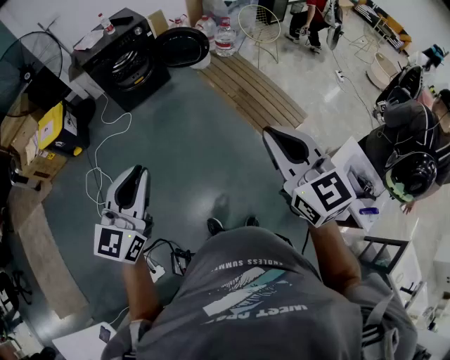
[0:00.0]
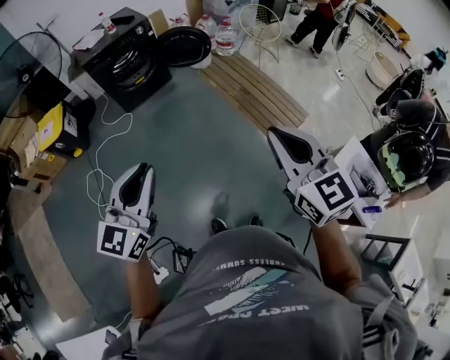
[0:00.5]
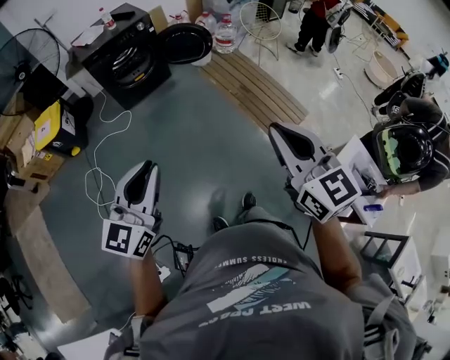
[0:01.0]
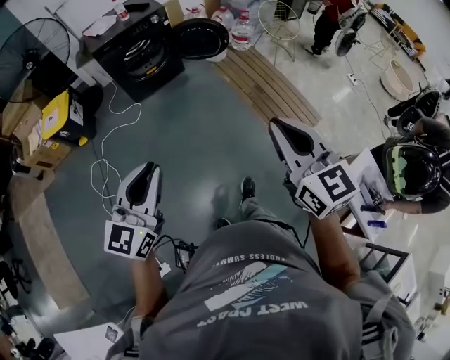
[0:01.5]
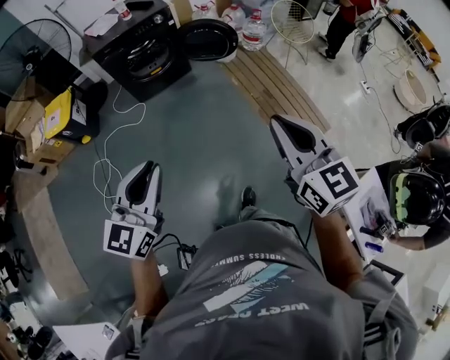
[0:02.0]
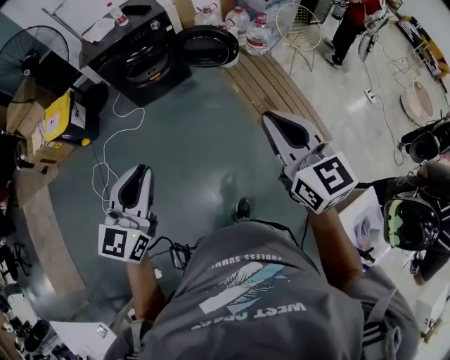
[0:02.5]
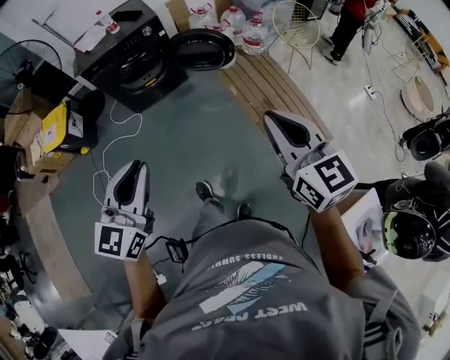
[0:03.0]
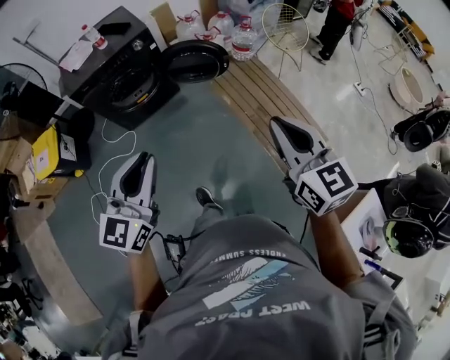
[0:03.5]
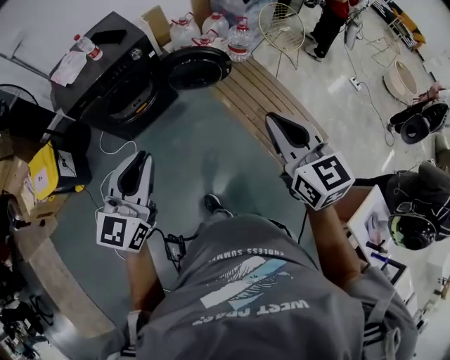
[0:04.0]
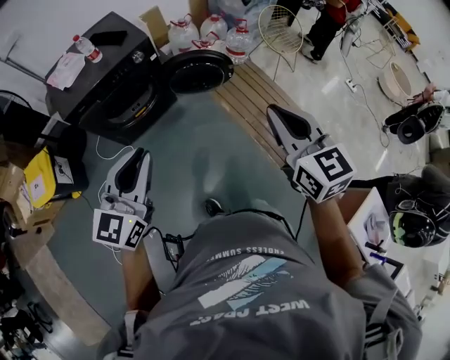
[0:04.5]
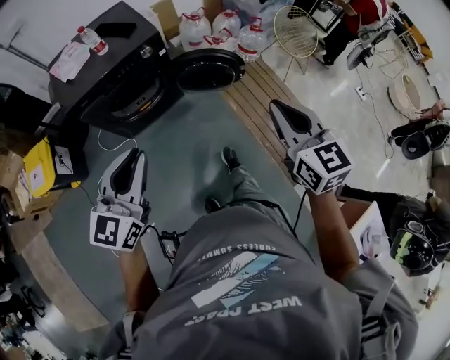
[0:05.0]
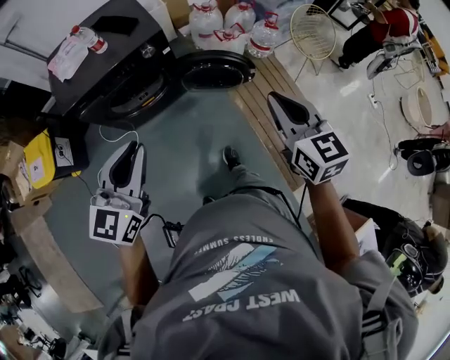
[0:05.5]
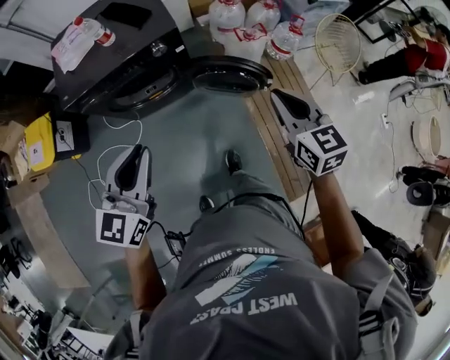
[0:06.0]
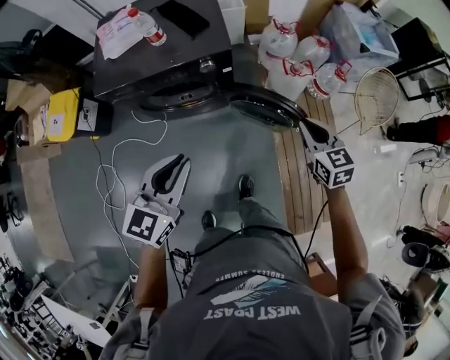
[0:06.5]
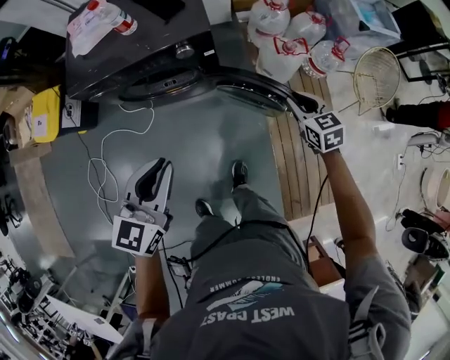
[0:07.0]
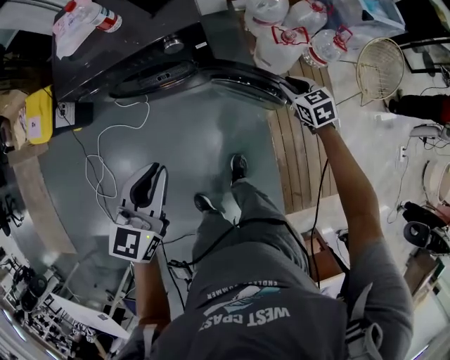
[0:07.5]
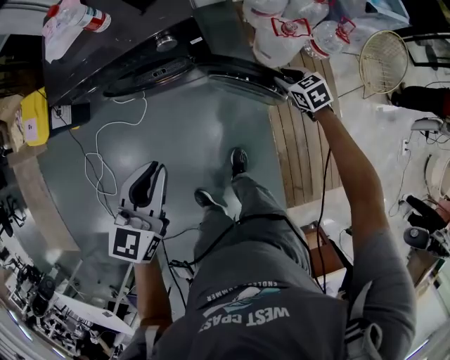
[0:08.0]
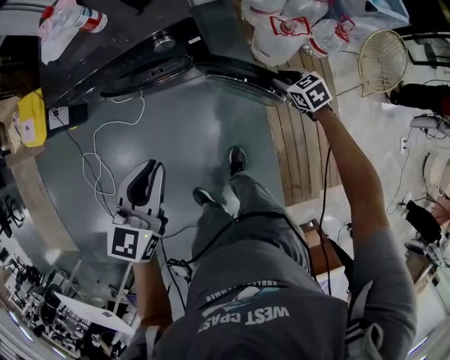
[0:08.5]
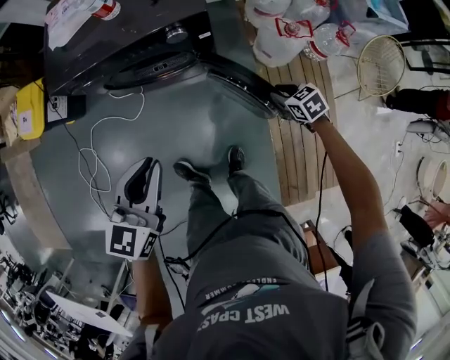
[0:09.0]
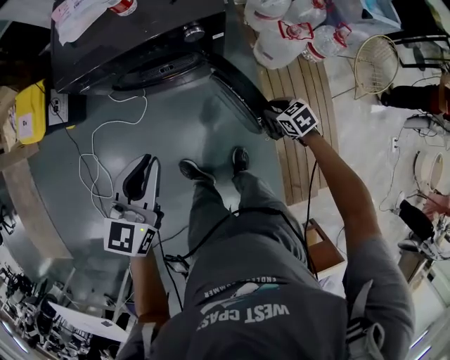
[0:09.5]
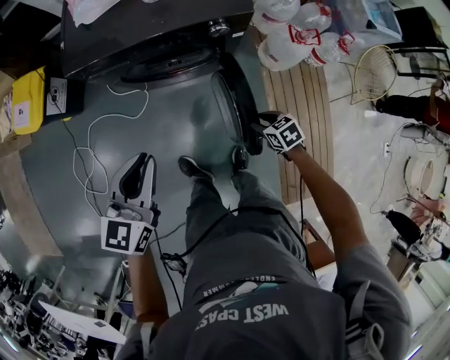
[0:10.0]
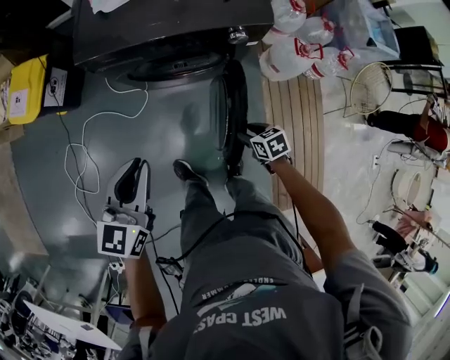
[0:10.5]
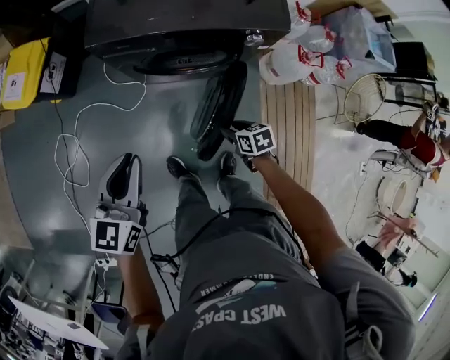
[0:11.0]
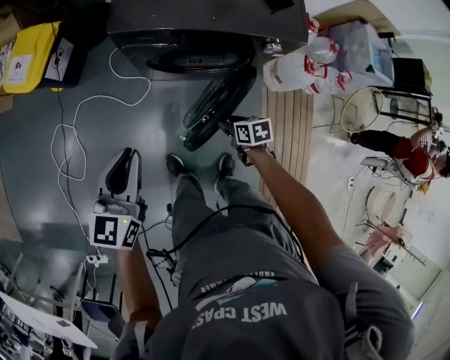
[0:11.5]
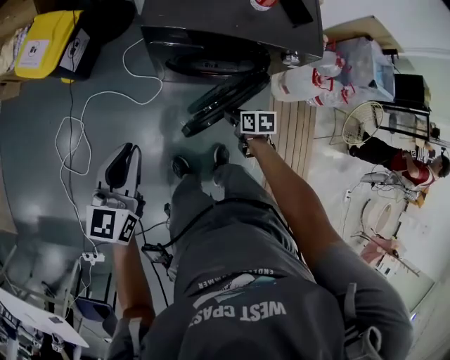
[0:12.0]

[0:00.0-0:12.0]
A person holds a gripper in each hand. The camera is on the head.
0:00.0 to 0:02.0: The two grippers go about 20 cm forward.
0:02.0 to 0:04.0: Both grippers travel together forward, about 35 cm.
0:04.0 to 0:06.0: Both grippers move forward, some 35 cm.
0:06.0 to 0:08.0: The right gripper is displaced downward and forward by about 40 cm, changes its angle by approximately 40 degrees, and opens up, while the left gripper goes roughly 15 cm downward and forward.
0:08.0 to 0:10.0: The right gripper goes roughly 25 cm to the left and backward. The left gripper shifts about 20 cm to the left.
0:10.0 to 0:12.0: The right gripper shifts approximately 25 cm to the left and forward, and swivels approximately 20 degrees. The left gripper shifts some 25 cm to the left.

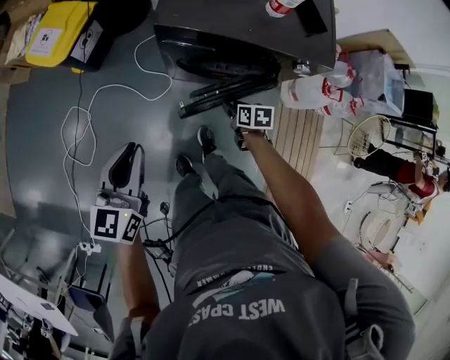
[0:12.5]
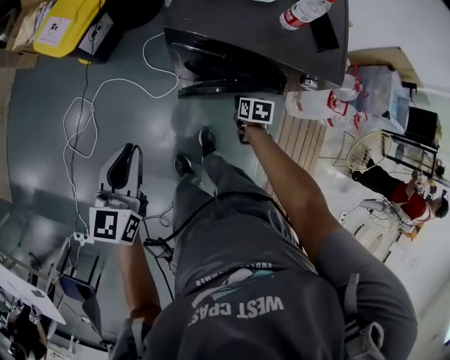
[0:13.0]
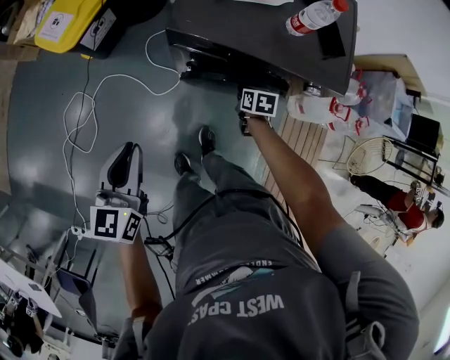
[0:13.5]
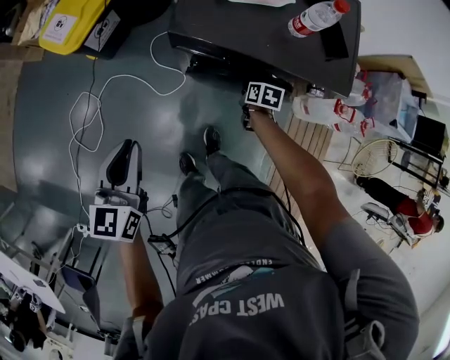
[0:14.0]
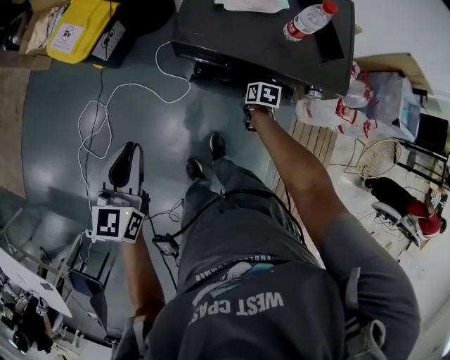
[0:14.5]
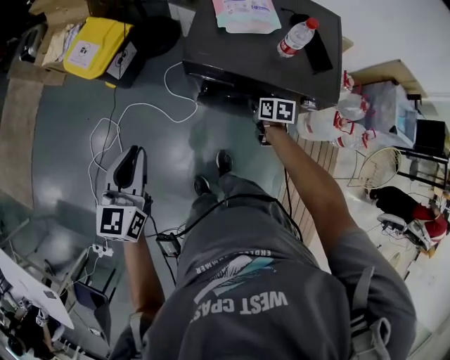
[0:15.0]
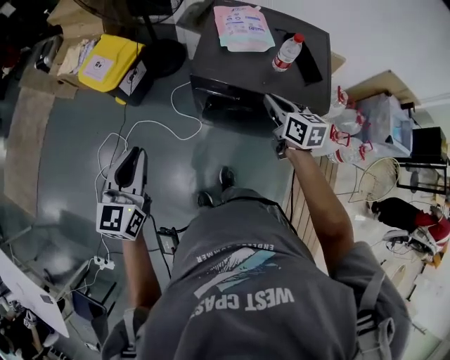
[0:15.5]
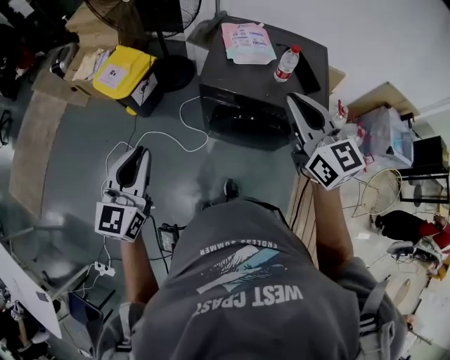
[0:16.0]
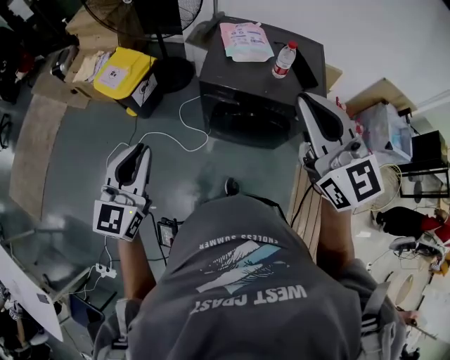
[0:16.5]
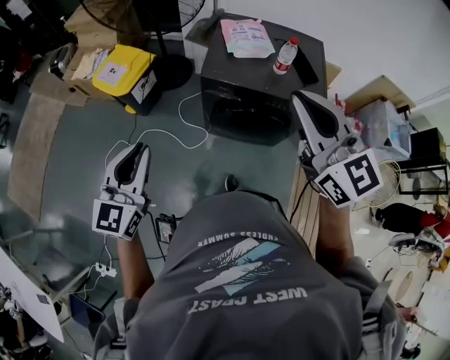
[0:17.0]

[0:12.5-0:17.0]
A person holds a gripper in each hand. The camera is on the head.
0:12.5 to 0:14.5: The left gripper travels forward by approximately 5 cm, while the right gripper moves forward, some 10 cm, and closes.
0:14.5 to 0:17.0: The right gripper moves upward, approximately 60 cm, and tips its fingers upward by about 60 degrees, while the left gripper moves upward and backward, about 20 cm, and rotates roughly 20 degrees.

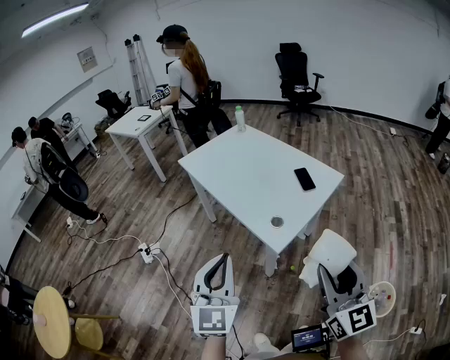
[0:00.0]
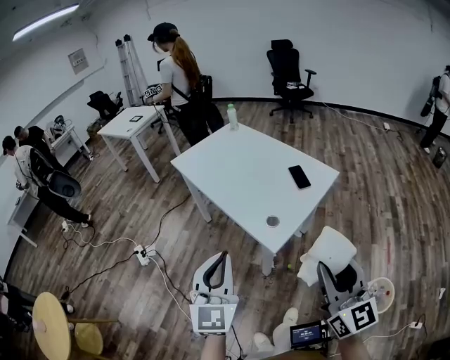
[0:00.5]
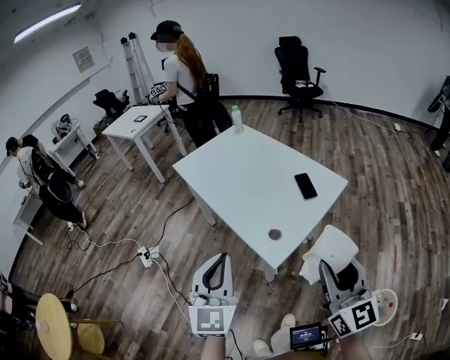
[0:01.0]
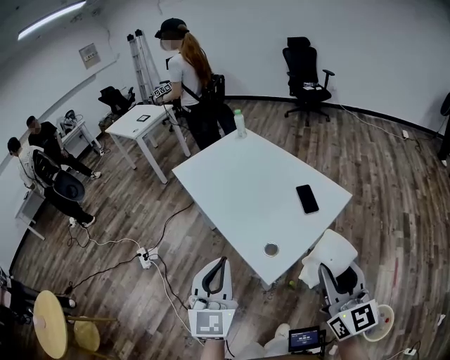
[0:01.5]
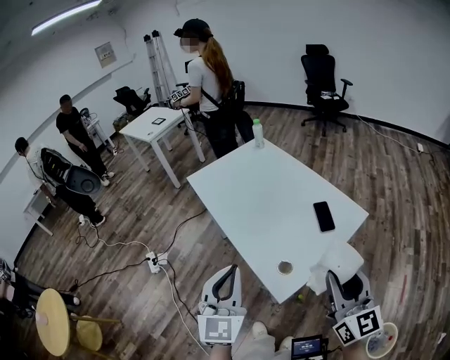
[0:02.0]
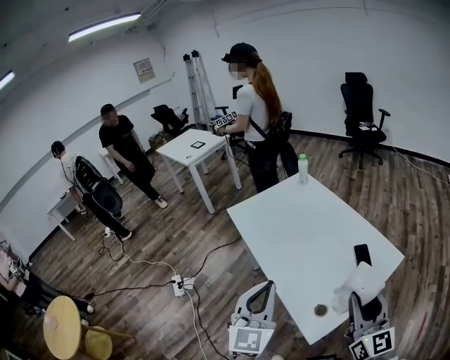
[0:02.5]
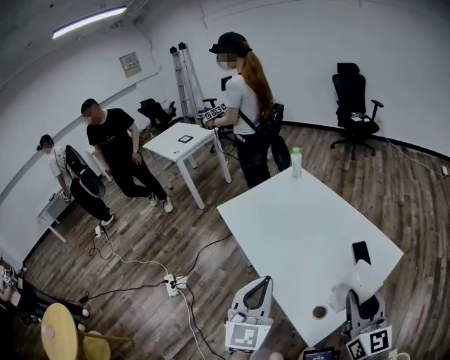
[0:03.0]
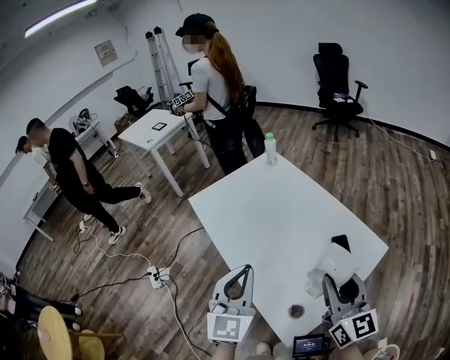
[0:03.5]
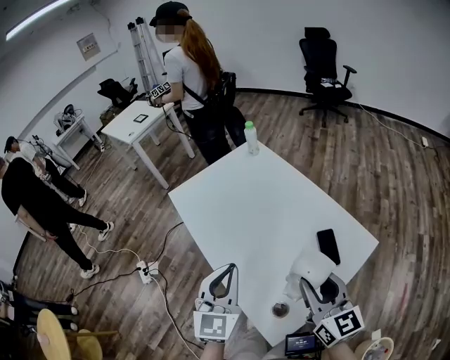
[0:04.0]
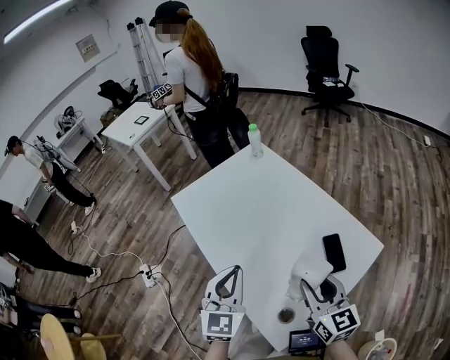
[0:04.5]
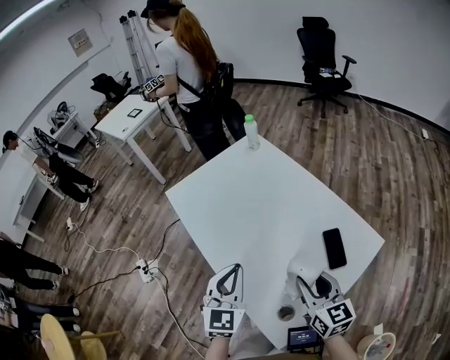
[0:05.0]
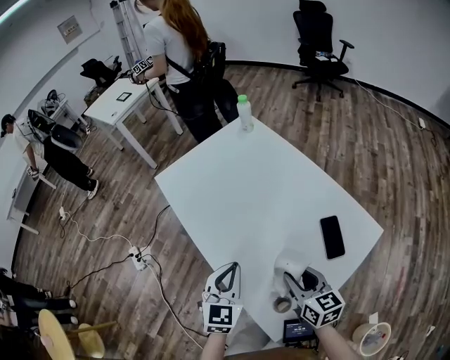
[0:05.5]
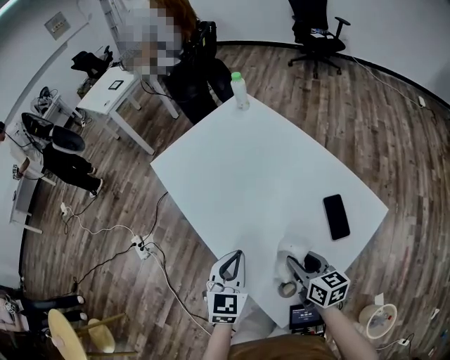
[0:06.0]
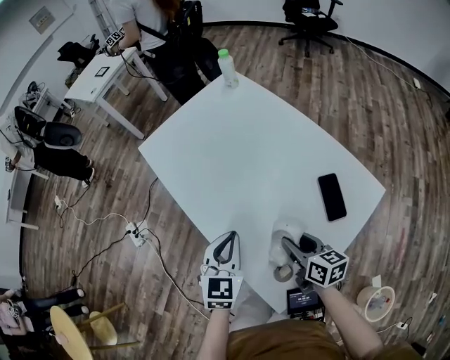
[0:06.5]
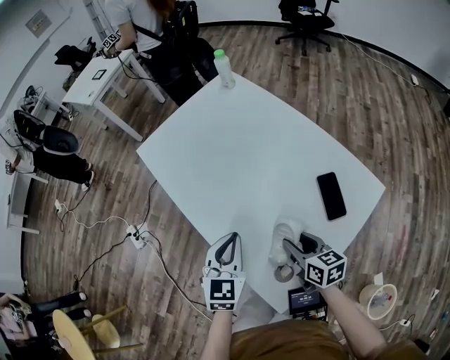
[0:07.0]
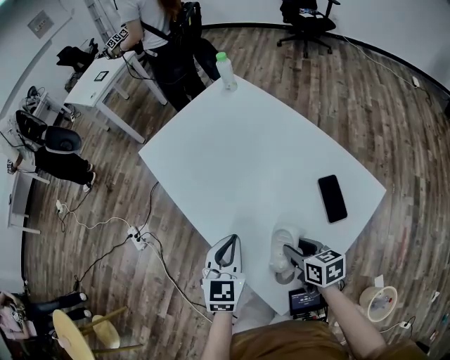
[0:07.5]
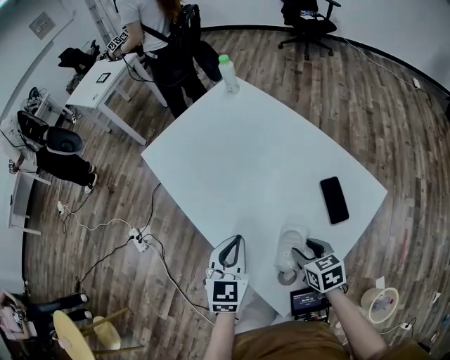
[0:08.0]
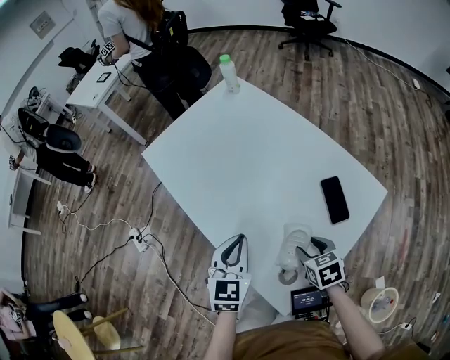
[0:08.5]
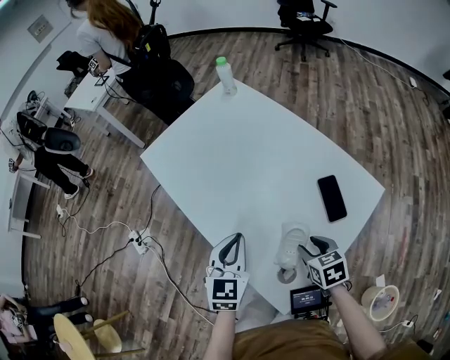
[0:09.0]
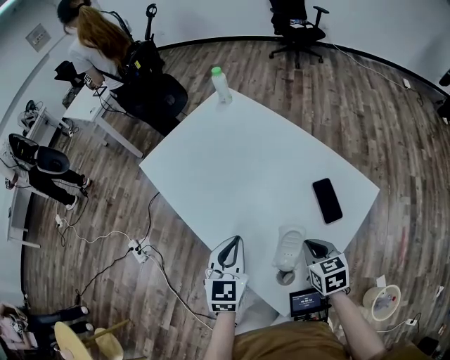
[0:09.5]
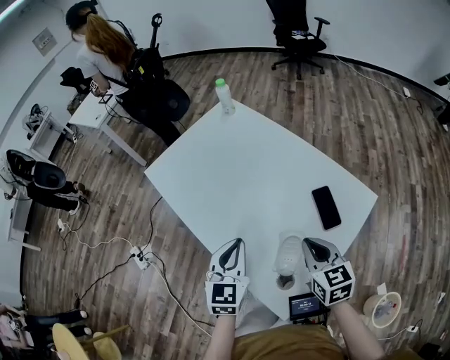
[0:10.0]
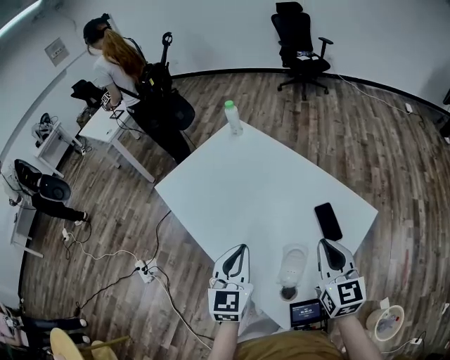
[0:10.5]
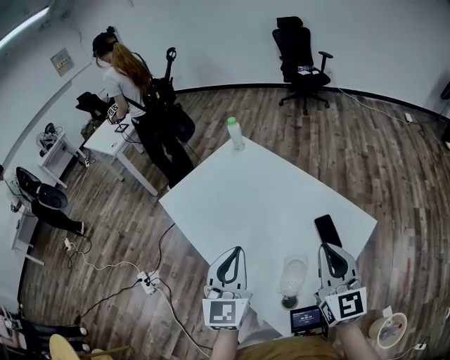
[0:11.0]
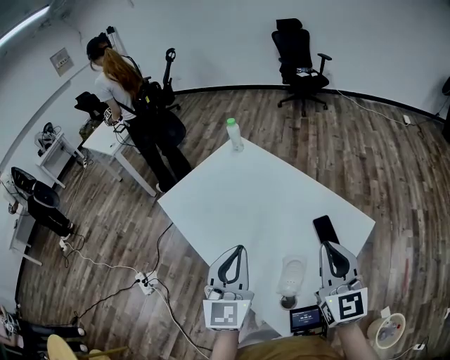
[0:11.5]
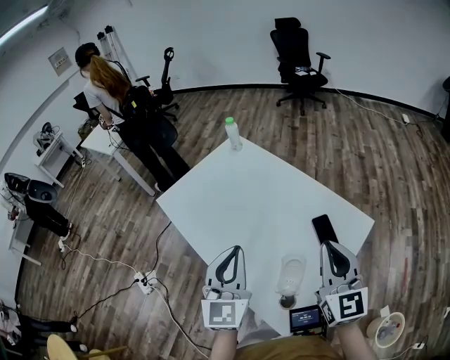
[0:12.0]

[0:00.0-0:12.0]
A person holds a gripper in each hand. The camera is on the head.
0:00.0 to 0:02.0: The two grippers go approximately 20 cm forward.
0:02.0 to 0:04.0: Both grippers move forward, some 20 cm.
0:04.0 to 0:06.0: The two grippers go about 20 cm downward. The right gripper rotates about 30 degrees.
0:06.0 to 0:08.0: The right gripper heads downward, covering about 5 cm, and changes its angle by some 20 degrees.
0:08.0 to 0:10.0: The right gripper heads upward, covering some 10 cm, rotates about 20 degrees, and closes.
0:10.0 to 0:12.0: The grippers both shift upward by approximately 15 cm. The right gripper changes its angle by about 30 degrees.
